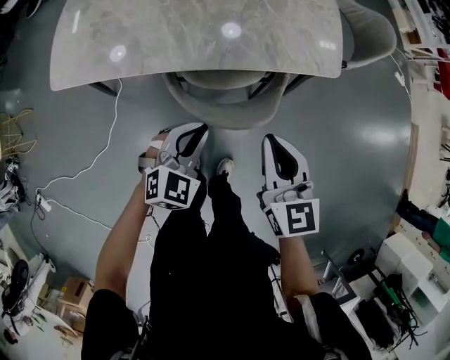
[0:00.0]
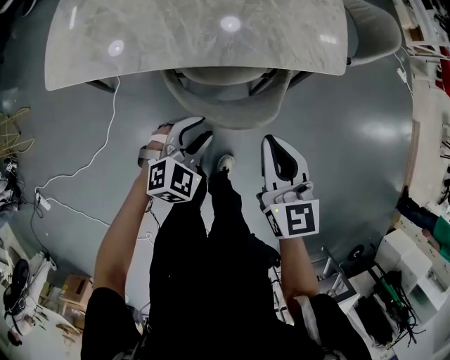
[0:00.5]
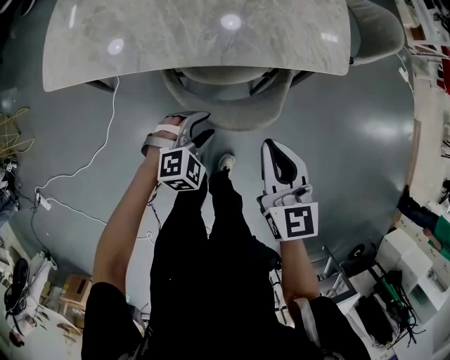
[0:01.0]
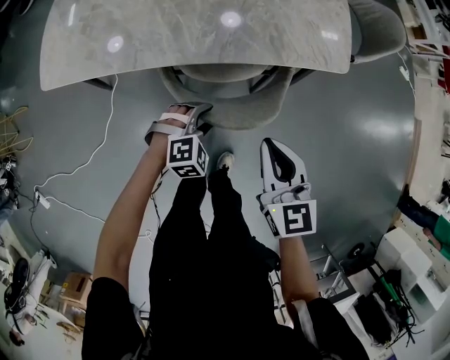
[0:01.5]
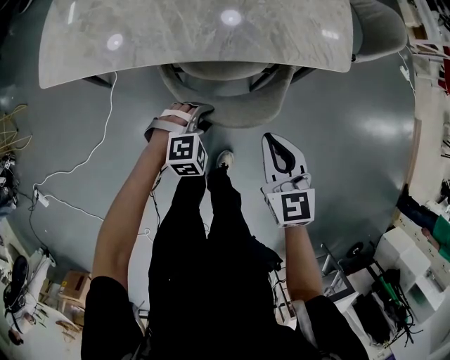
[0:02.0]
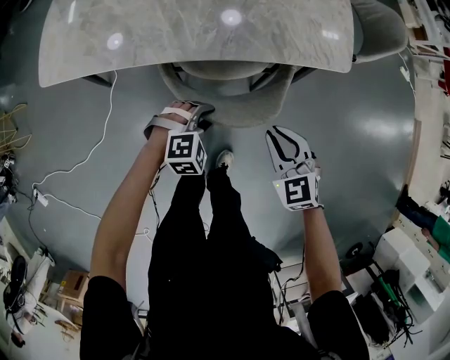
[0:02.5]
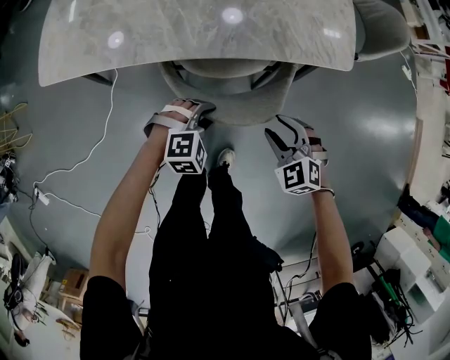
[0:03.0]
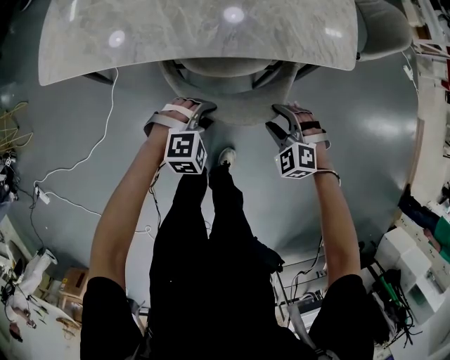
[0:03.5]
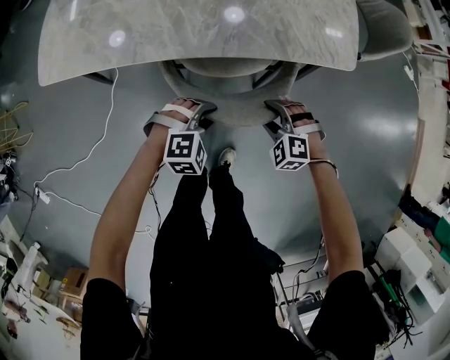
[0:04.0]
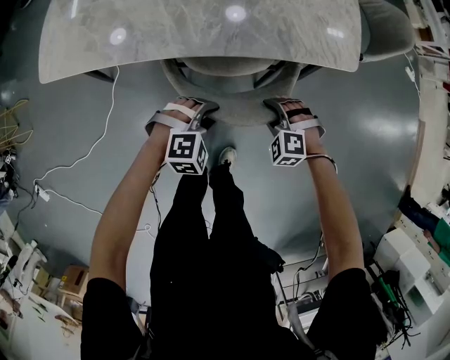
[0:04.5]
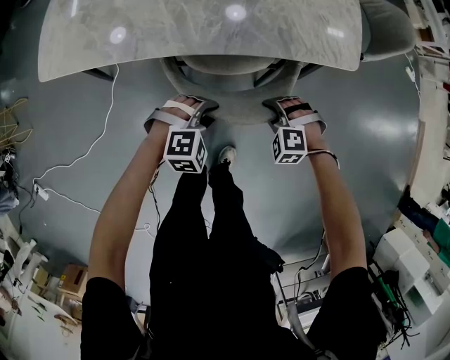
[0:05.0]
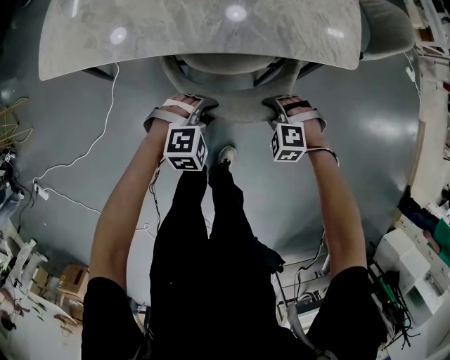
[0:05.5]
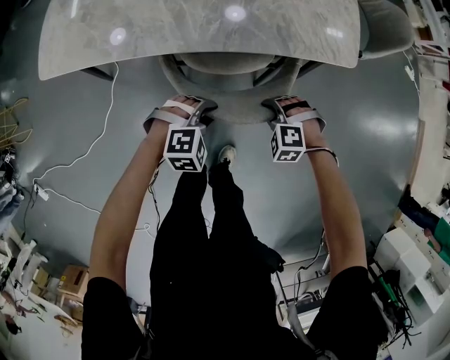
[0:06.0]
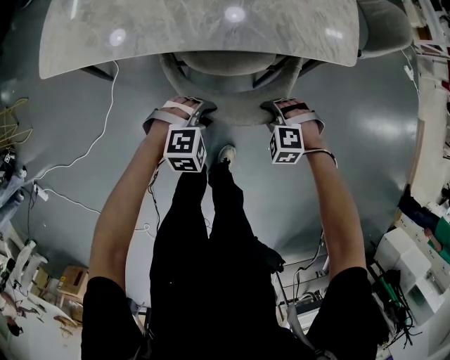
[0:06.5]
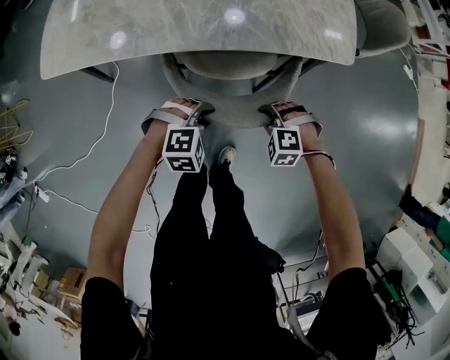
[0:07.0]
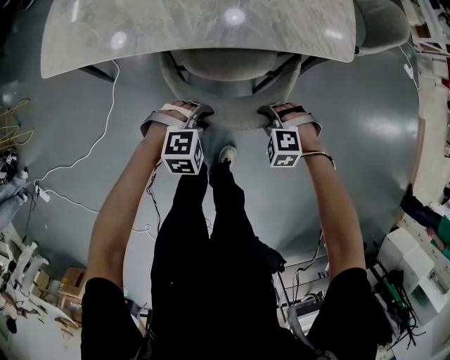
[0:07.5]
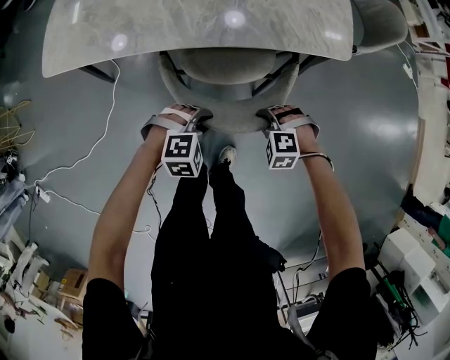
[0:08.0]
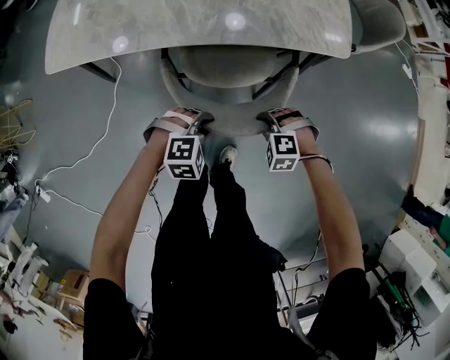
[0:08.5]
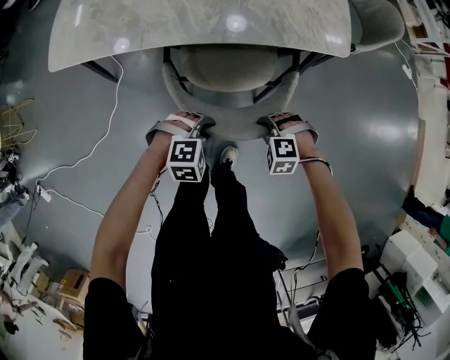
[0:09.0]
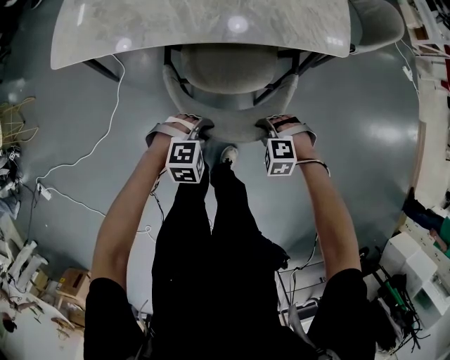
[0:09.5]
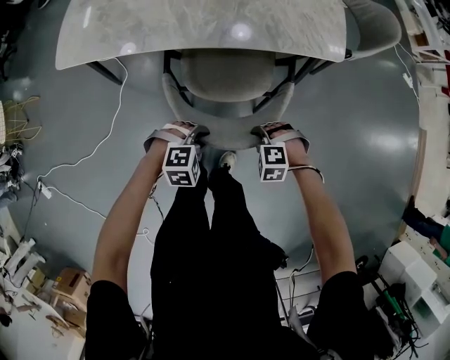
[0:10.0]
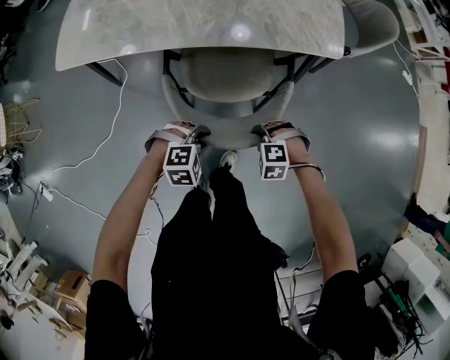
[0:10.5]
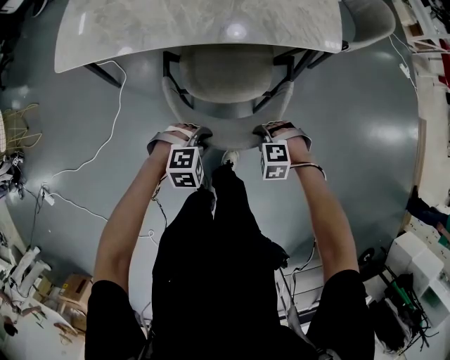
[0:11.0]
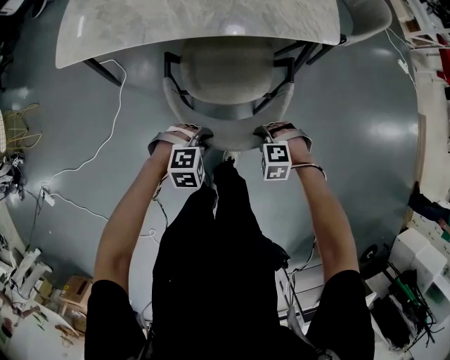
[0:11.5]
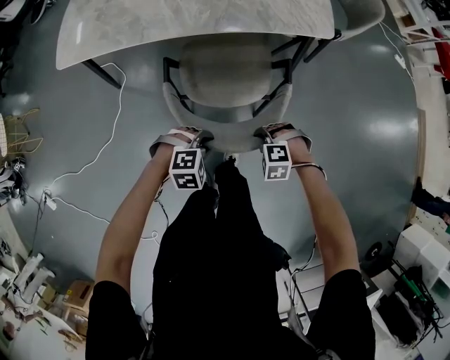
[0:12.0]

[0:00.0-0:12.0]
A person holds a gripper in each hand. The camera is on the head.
0:00.0 to 0:02.0: The right gripper goes approximately 10 cm downward. The left gripper is displaced downward by some 15 cm, turns by about 30 degrees, and opens.
0:02.0 to 0:04.0: The right gripper goes about 20 cm downward, twists some 60 degrees counterclockwise, seen from behind, and opens.
0:04.0 to 0:06.0: The right gripper closes its fingers.
0:06.0 to 0:08.0: The right gripper shifts approximately 5 cm backward.
0:08.0 to 0:10.0: The left gripper changes place by approximately 5 cm, while the right gripper moves approximately 5 cm.
0:10.0 to 0:12.0: The right gripper moves some 10 cm, while the left gripper moves roughly 10 cm.

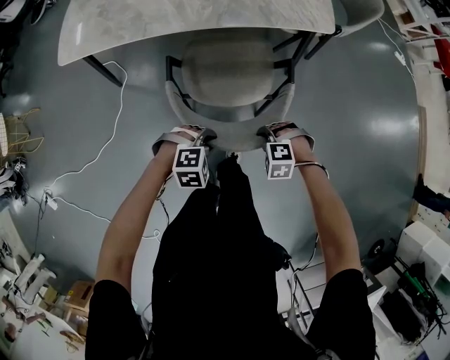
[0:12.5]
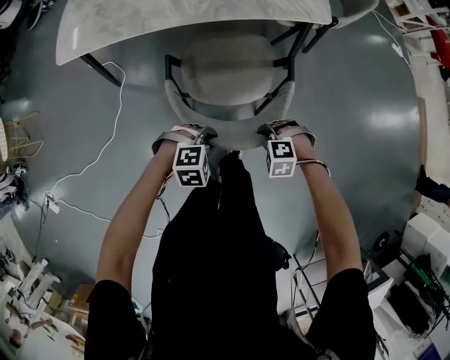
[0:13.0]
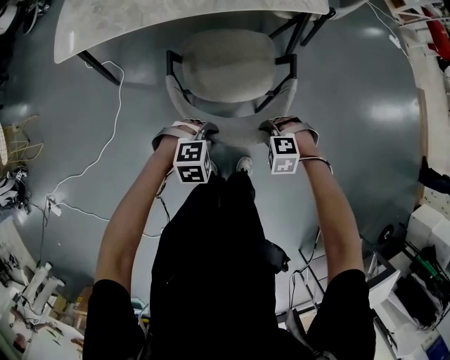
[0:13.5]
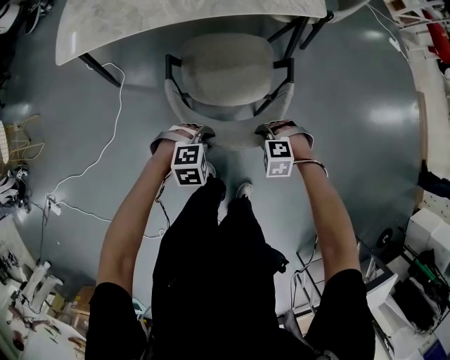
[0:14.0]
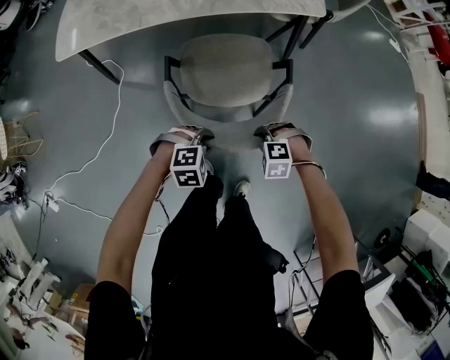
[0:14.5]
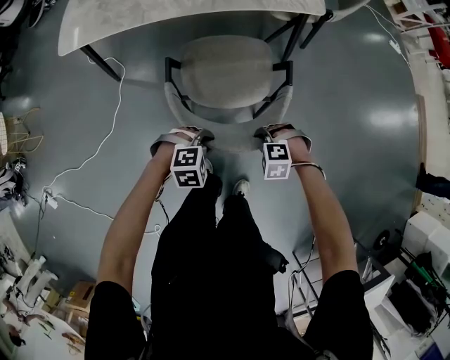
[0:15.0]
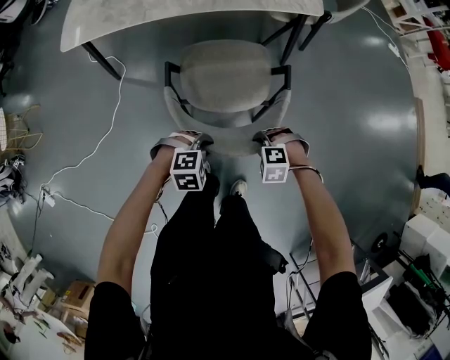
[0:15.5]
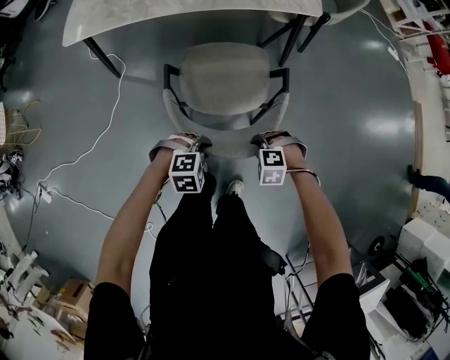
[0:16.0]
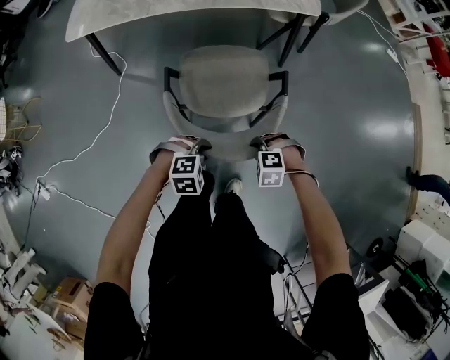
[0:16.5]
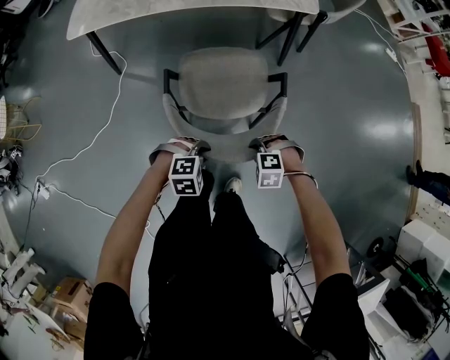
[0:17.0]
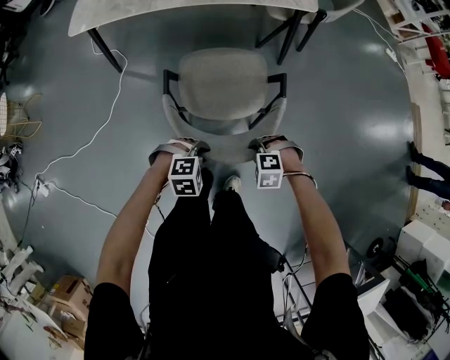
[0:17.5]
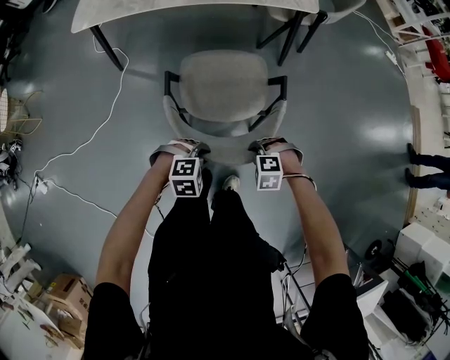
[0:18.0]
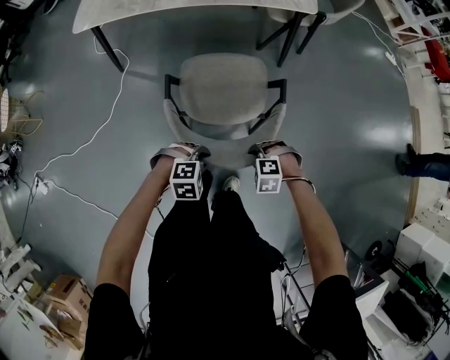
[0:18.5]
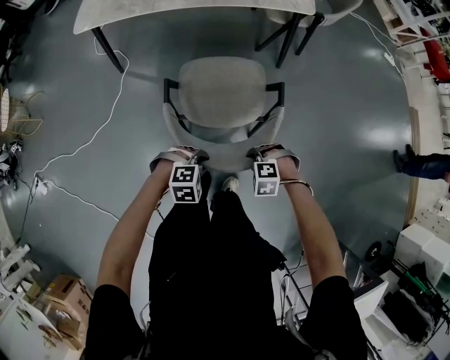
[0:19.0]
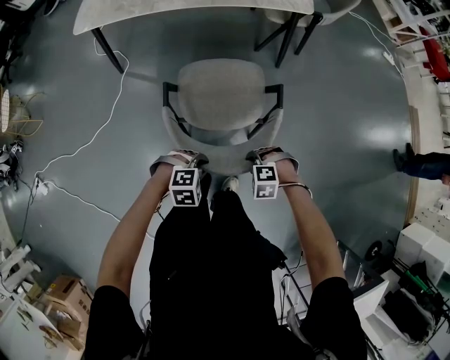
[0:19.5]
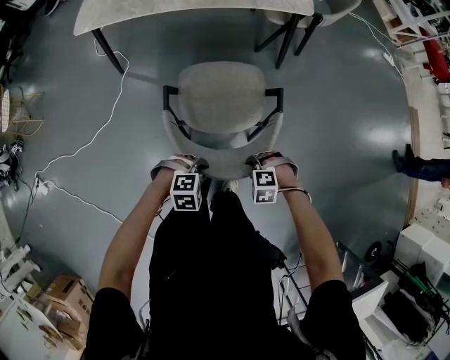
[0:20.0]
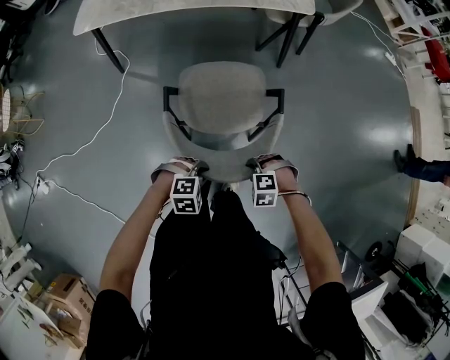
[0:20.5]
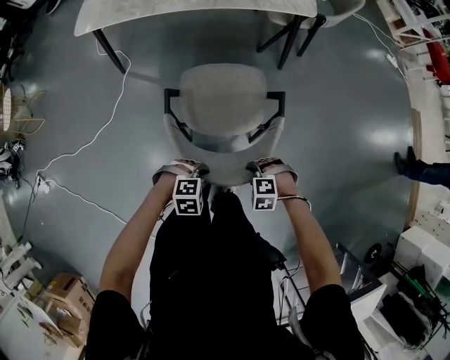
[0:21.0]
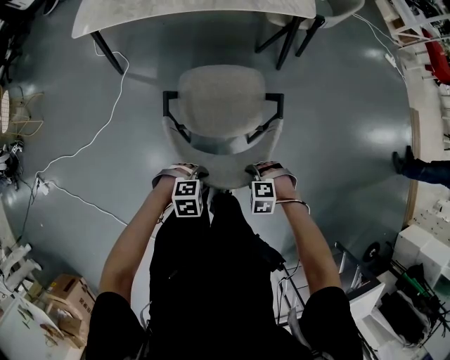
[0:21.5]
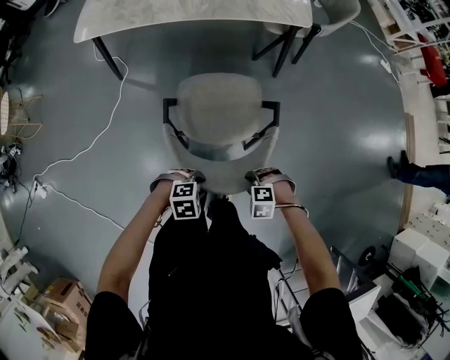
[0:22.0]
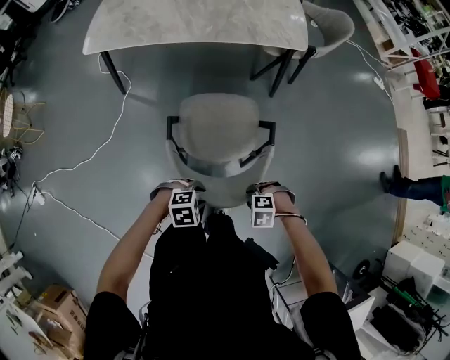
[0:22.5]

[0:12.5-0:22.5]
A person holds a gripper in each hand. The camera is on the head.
0:12.5 to 0:14.5: The right gripper shifts by roughly 5 cm. The left gripper moves some 5 cm.
0:14.5 to 0:16.5: The left gripper changes place by some 10 cm; the right gripper ends up approximately 10 cm from where it was.
0:16.5 to 0:18.5: The right gripper shifts by approximately 5 cm; the left gripper ends up some 5 cm from where it was.
0:18.5 to 0:20.5: The grippers make only small movements.
0:20.5 to 0:22.5: The grippers both shift upward by approximately 5 cm.

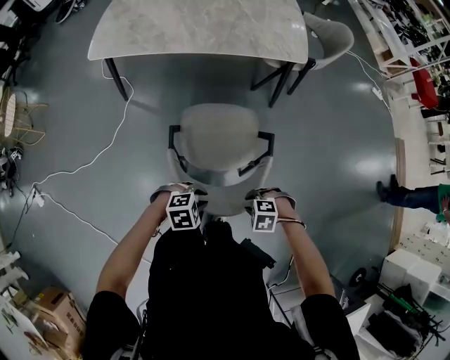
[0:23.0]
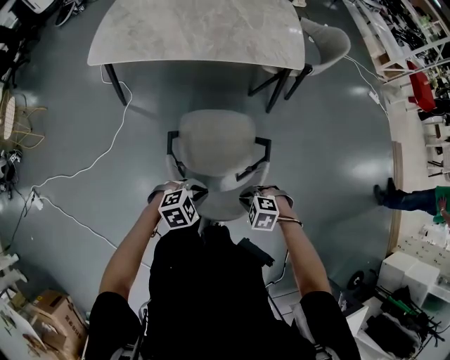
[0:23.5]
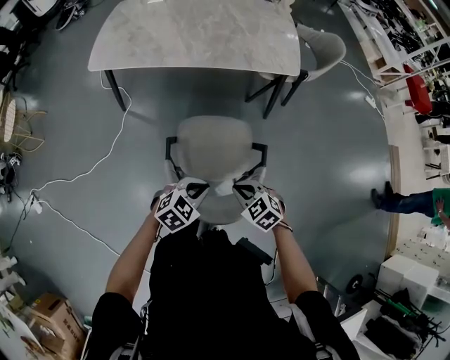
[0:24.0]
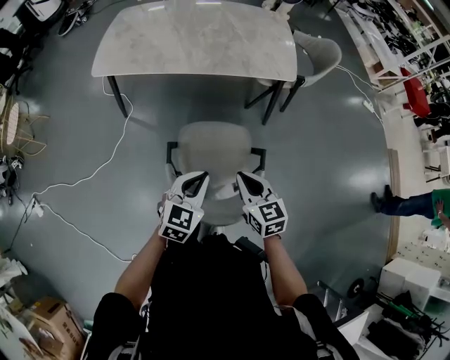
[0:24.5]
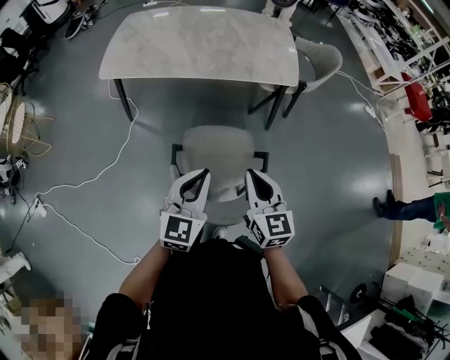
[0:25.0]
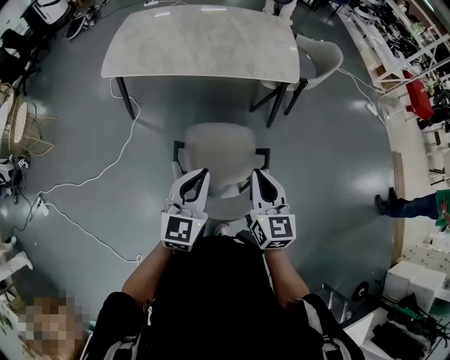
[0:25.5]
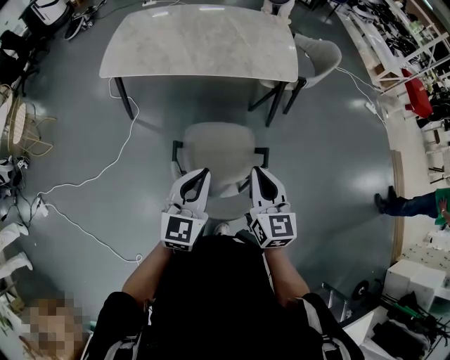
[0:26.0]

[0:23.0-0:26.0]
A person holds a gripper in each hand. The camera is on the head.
0:23.0 to 0:24.5: The two grippers go some 20 cm upward. The left gripper points its fingers roughly 30 degrees further upward, and closes up. Meanwhile the right gripper tilts its fingers roughly 50 degrees upward, and closes up.
0:24.5 to 0:26.0: The grippers both shift upward by some 10 cm. The right gripper rotates some 20 degrees.

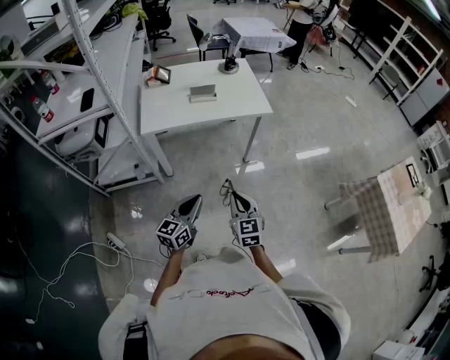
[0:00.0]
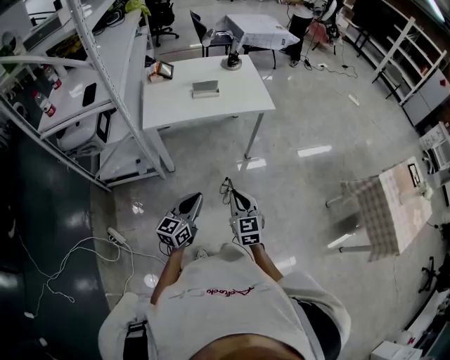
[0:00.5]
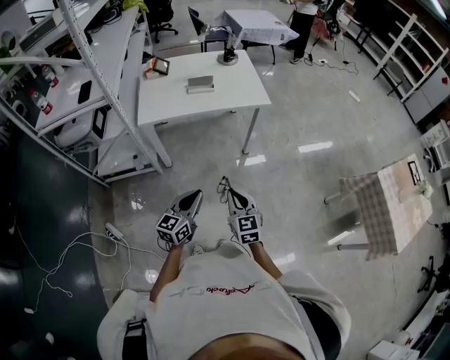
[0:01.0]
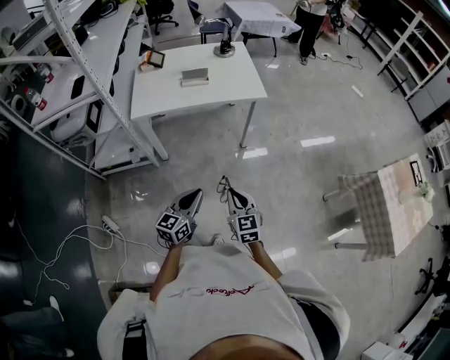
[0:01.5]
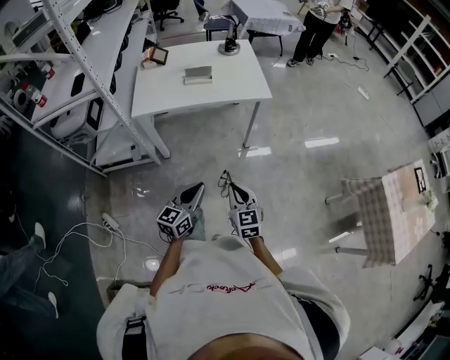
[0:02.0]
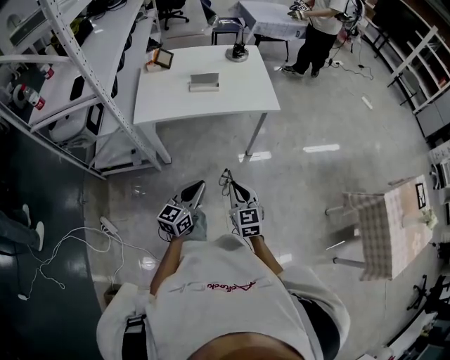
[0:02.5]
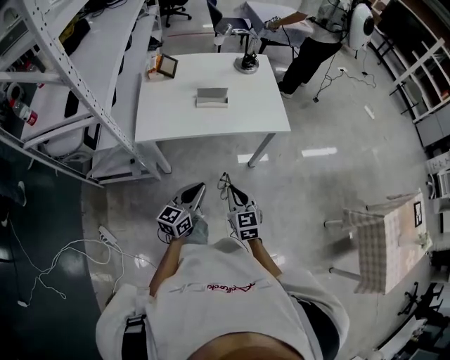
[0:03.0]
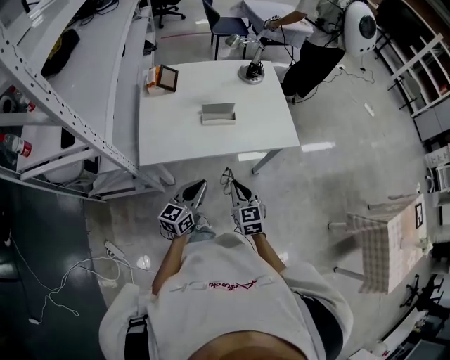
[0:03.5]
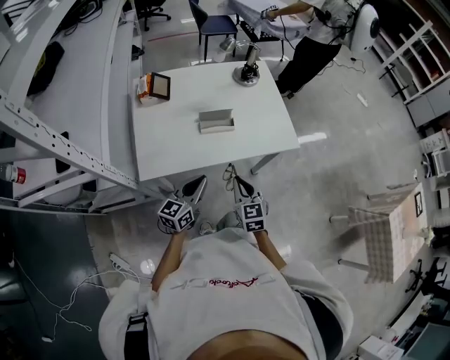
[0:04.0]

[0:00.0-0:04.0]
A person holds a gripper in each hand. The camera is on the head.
0:00.0 to 0:02.0: Both grippers travel together to the right, about 5 cm.
0:02.0 to 0:04.0: The grippers both shift forward and to the left by some 35 cm.
